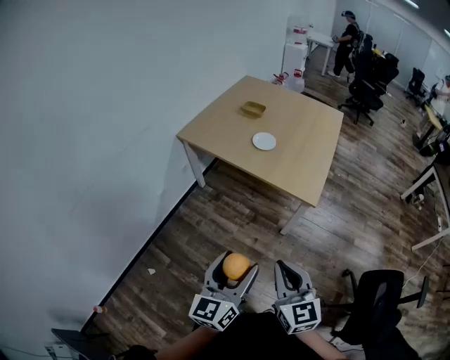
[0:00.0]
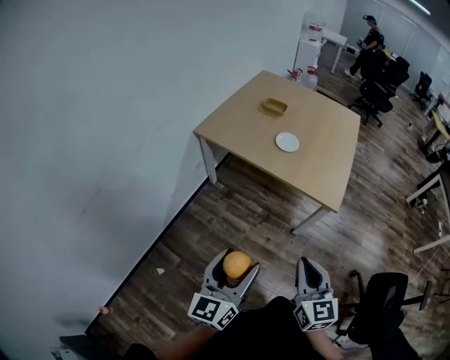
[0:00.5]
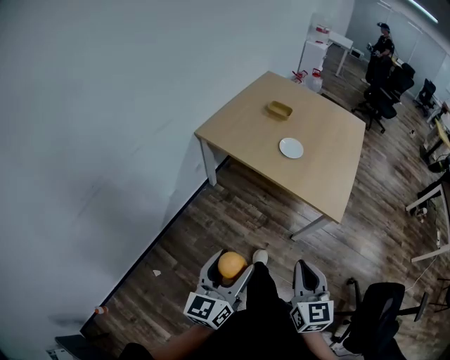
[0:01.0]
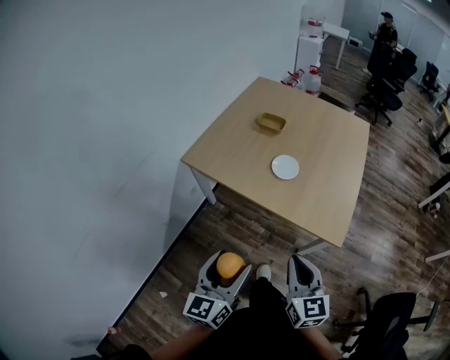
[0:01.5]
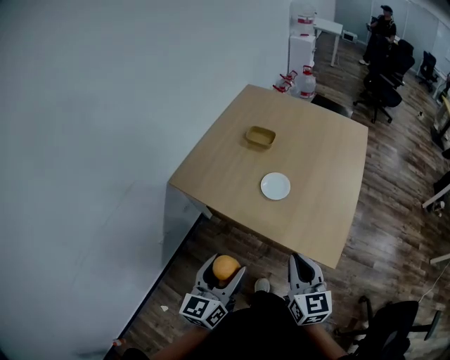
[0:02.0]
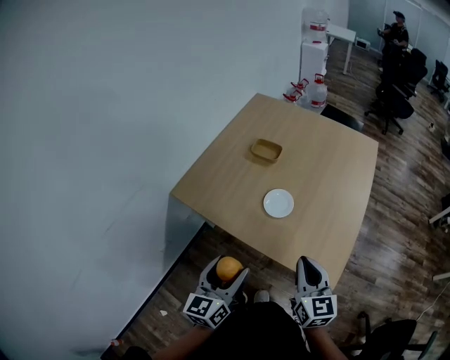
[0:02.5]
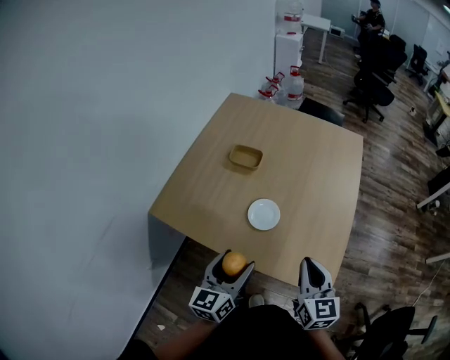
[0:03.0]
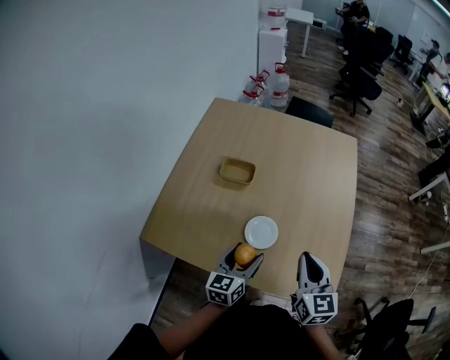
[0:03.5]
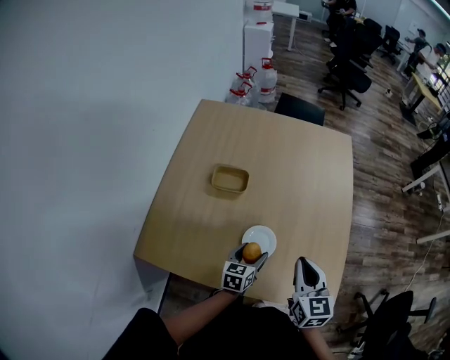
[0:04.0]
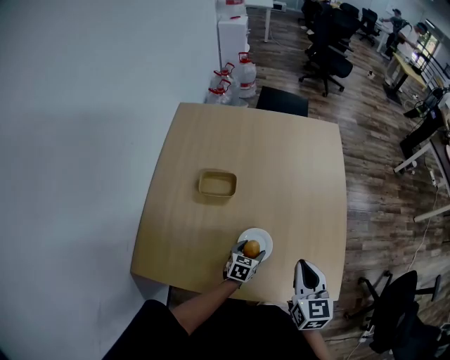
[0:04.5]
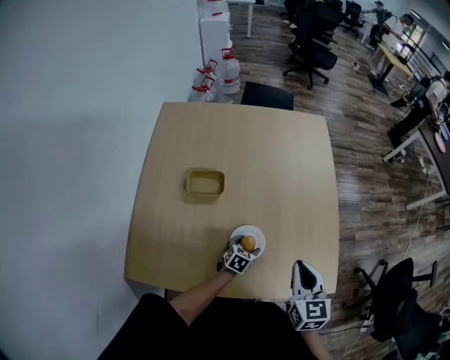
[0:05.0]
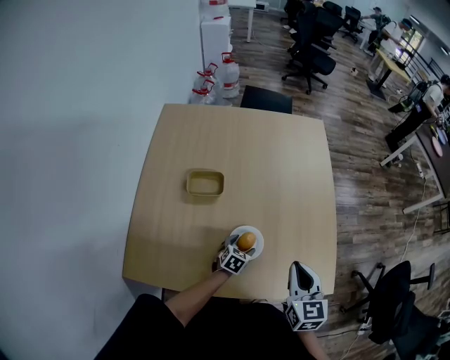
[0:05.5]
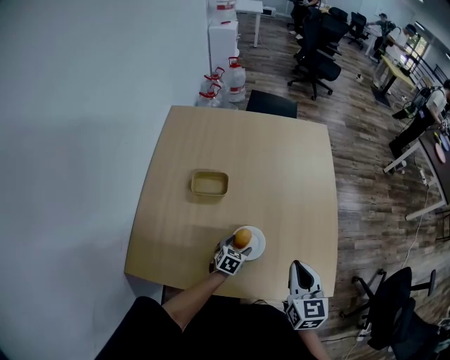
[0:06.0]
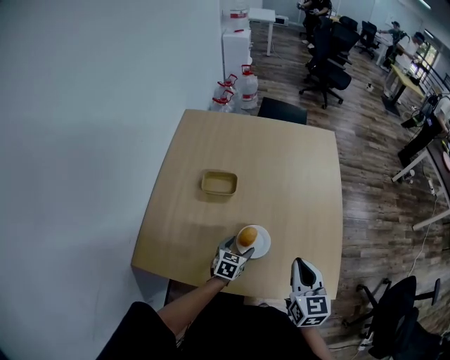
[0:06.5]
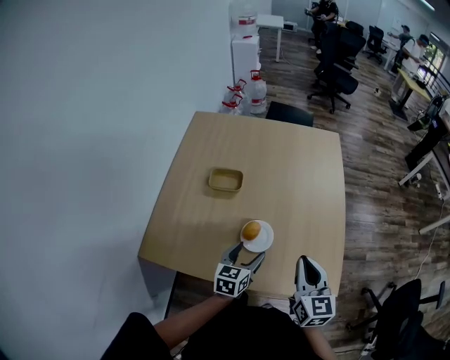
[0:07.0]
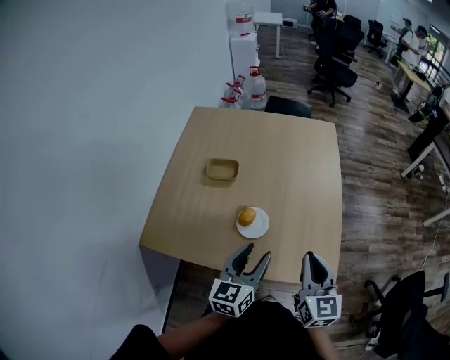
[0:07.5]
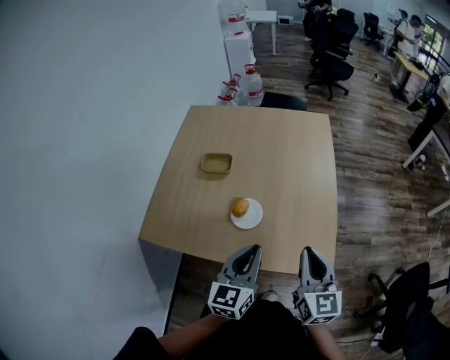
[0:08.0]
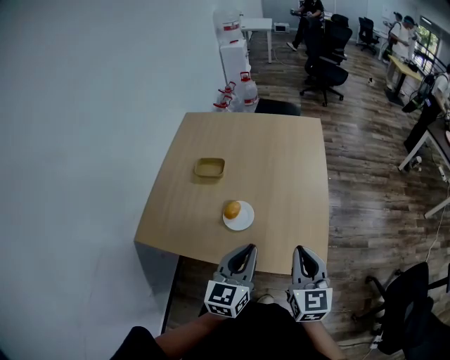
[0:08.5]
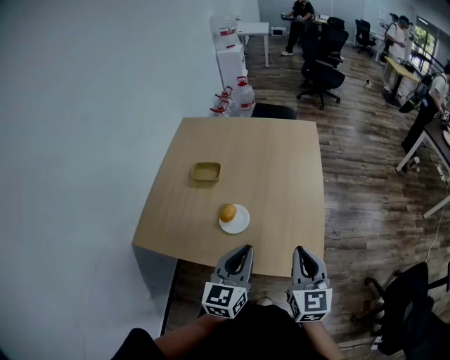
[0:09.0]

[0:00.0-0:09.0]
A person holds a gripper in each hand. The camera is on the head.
0:00.0 to 0:02.0: Both grippers travel together forward, roughly 35 cm.
0:02.0 to 0:04.5: The right gripper ends up approximately 25 cm from where it was, and changes its angle by roughly 30 degrees, while the left gripper changes place by roughly 50 cm, and tips its fingers downward by approximately 30 degrees.
0:04.5 to 0:07.0: The left gripper shifts about 15 cm upward, while the right gripper changes place by about 5 cm.
0:07.0 to 0:09.0: The right gripper moves to the right and backward, some 15 cm; the left gripper travels upward, to the right and backward by roughly 25 cm, rotates roughly 20 degrees, and closes.

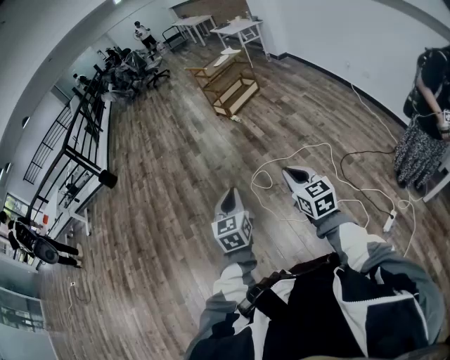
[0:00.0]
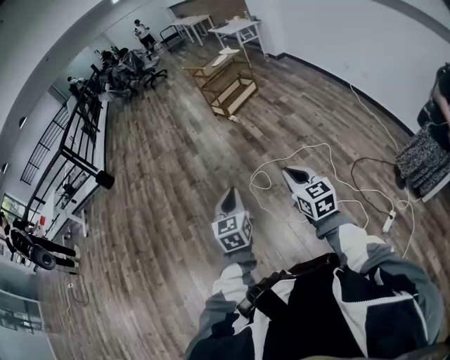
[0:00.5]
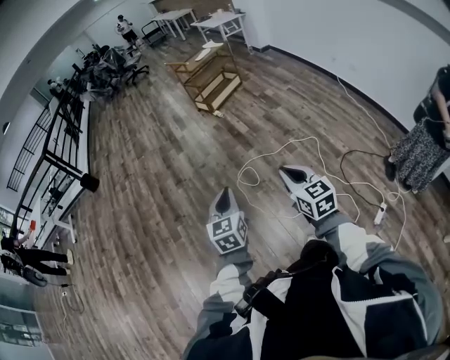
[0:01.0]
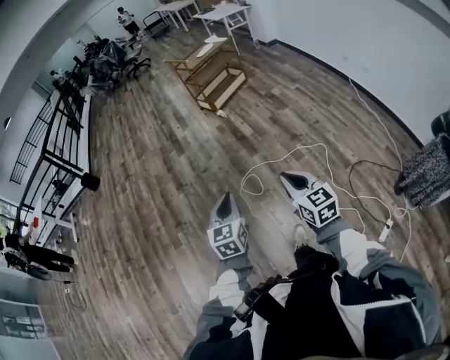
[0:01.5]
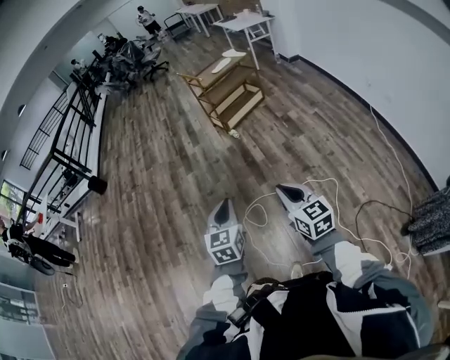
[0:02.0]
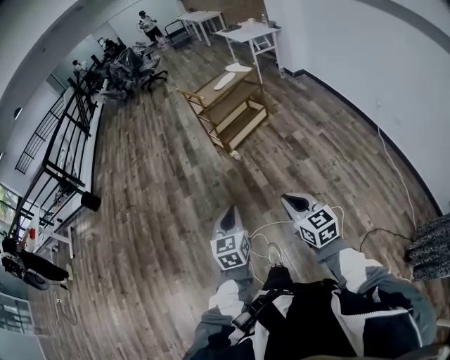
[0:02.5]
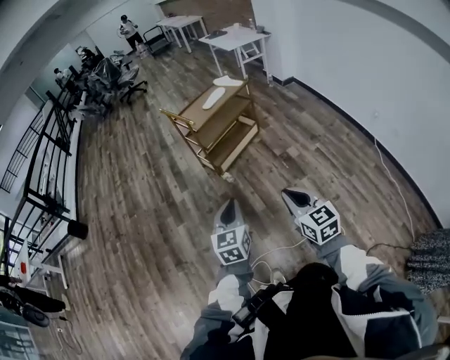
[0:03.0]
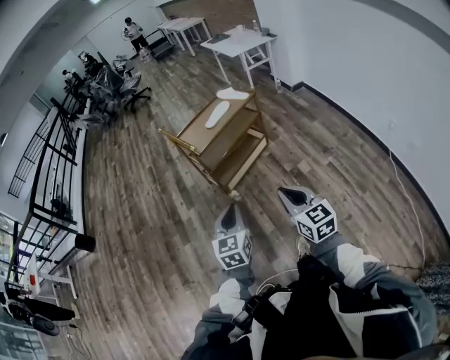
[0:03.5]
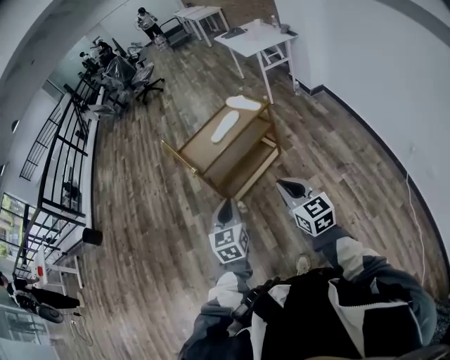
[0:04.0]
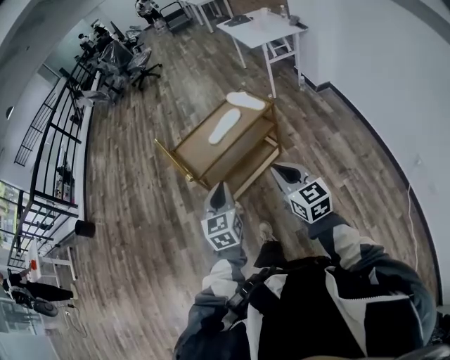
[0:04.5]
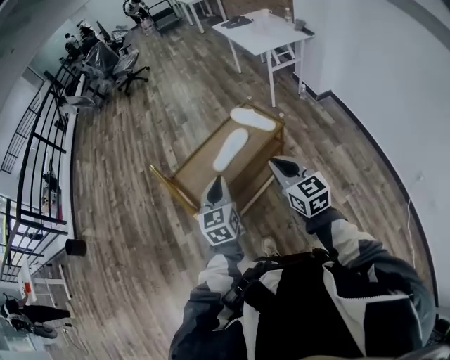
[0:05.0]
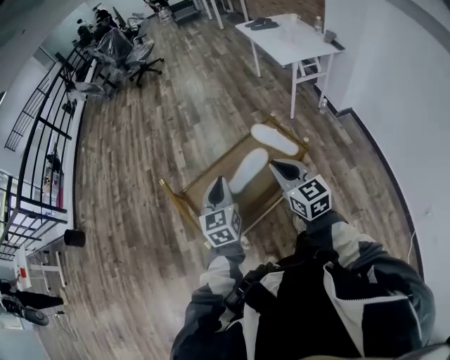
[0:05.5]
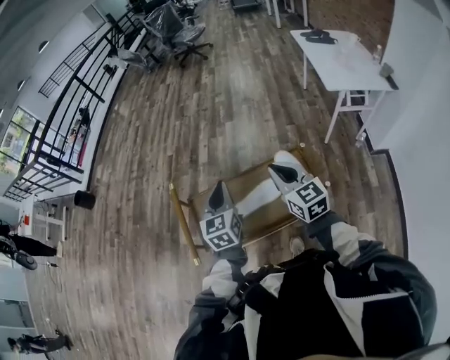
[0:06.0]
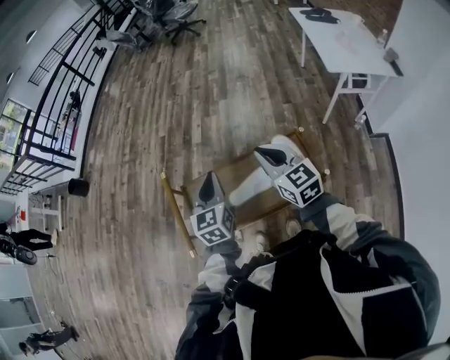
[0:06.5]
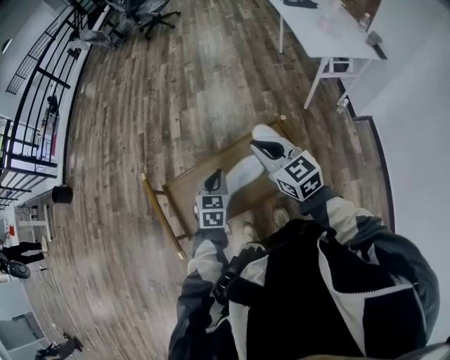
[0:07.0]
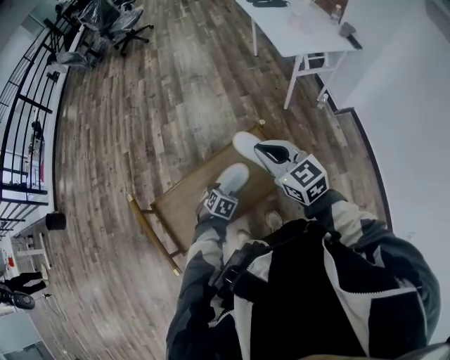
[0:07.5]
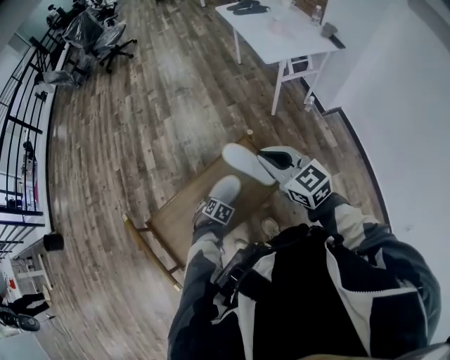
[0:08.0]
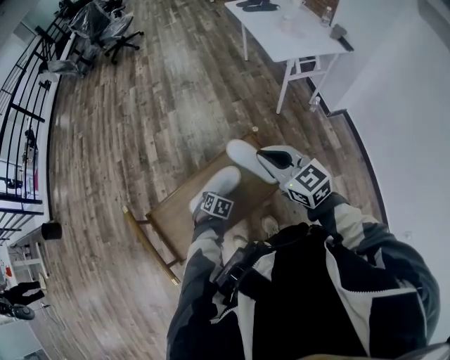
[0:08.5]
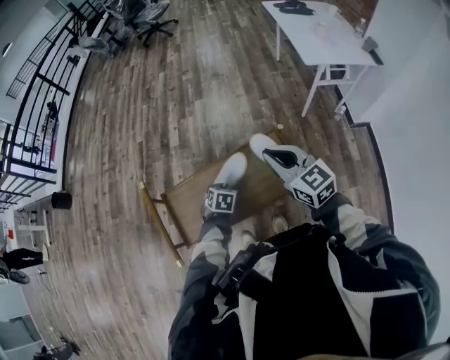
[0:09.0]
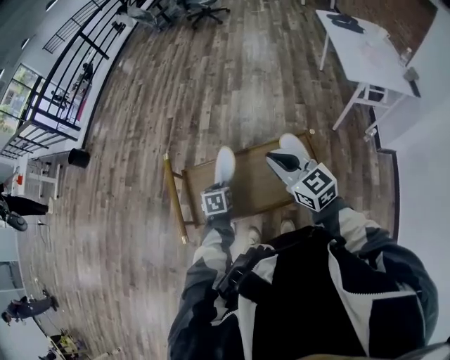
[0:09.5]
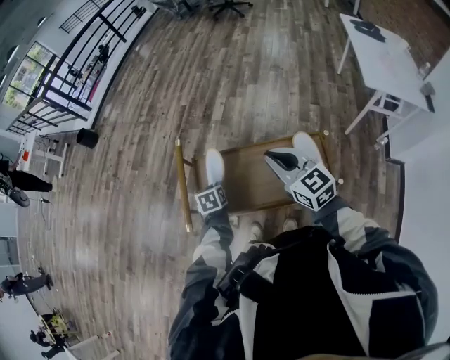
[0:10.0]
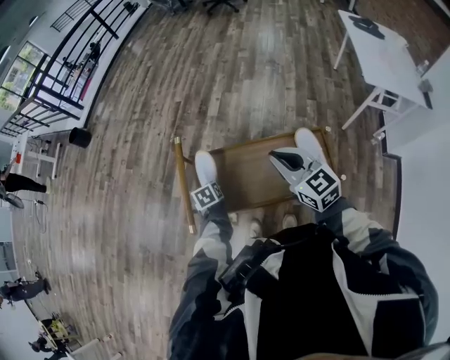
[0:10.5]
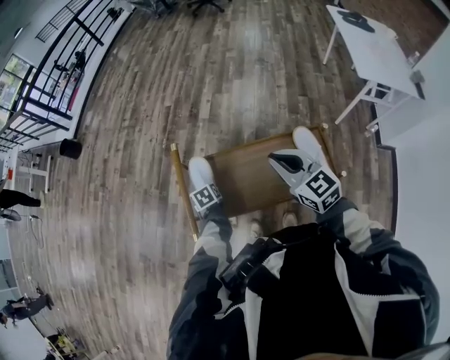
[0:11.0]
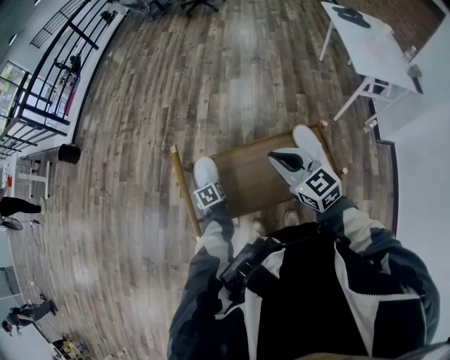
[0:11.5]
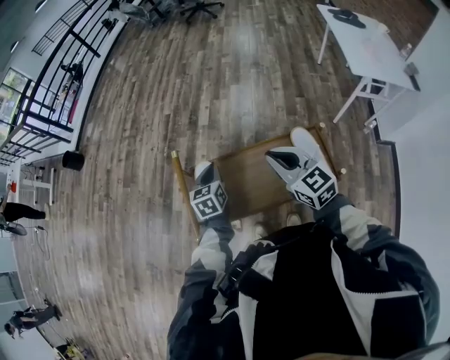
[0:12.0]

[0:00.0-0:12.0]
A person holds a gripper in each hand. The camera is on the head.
0:00.0 to 0:02.0: The right gripper goes some 35 cm forward; the left gripper goes roughly 35 cm forward and to the right.
0:02.0 to 0:04.0: The two grippers travel together, forward, approximately 80 cm.
0:04.0 to 0:06.0: Both grippers are carried forward, approximately 60 cm. The left gripper swivels about 30 degrees. The right gripper rotates roughly 20 degrees.
0:06.0 to 0:08.0: The right gripper moves about 15 cm. Meanwhile the left gripper shifts some 35 cm downward, tilts its fingers about 60 degrees downward, and opens its fingers.
0:08.0 to 0:10.0: The left gripper shifts by roughly 25 cm, rolls counterclockwise, seen from behind, by about 70 degrees, and closes up, while the right gripper shifts by some 20 cm, and rotates roughly 30 degrees.
0:10.0 to 0:12.0: The left gripper is displaced upward and forward by approximately 10 cm, turns by about 30 degrees, and opens, then closes once more.

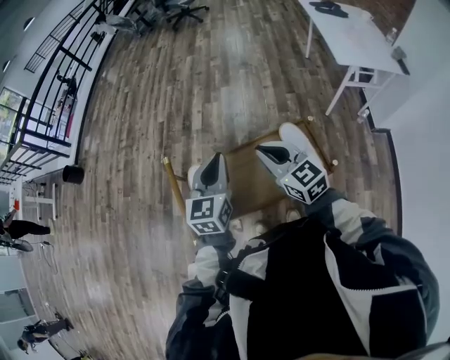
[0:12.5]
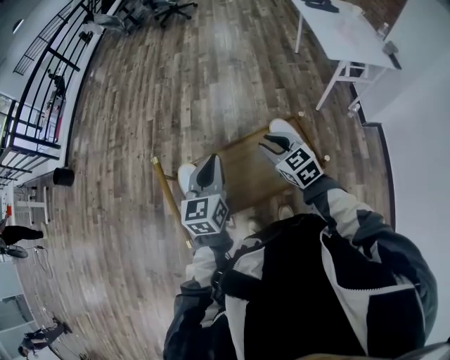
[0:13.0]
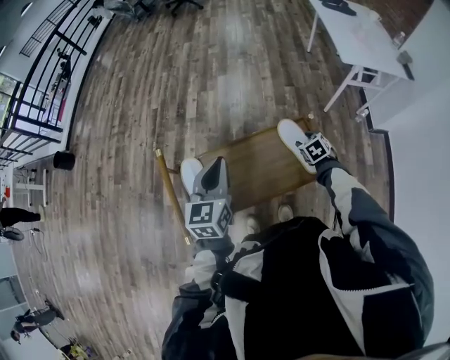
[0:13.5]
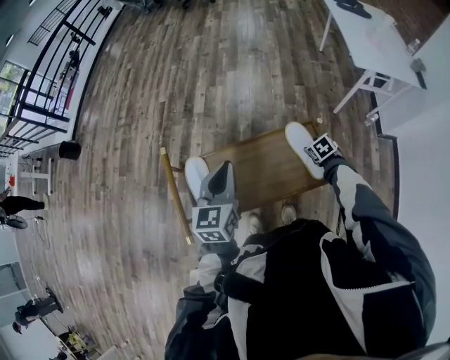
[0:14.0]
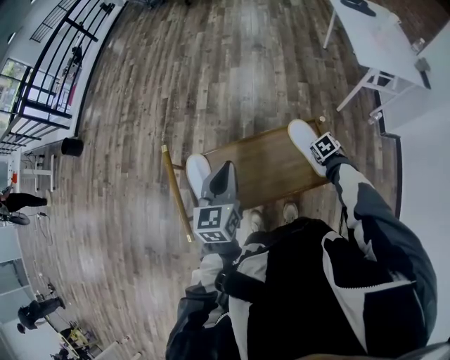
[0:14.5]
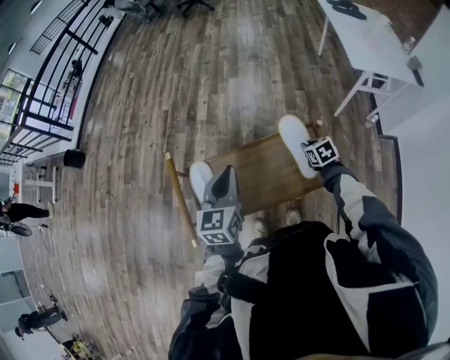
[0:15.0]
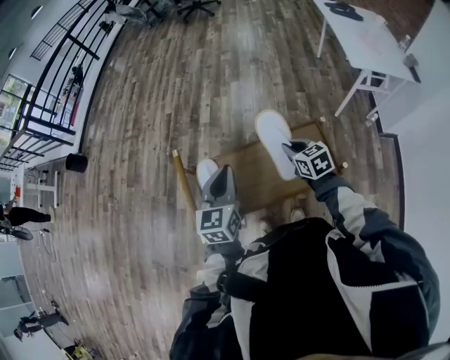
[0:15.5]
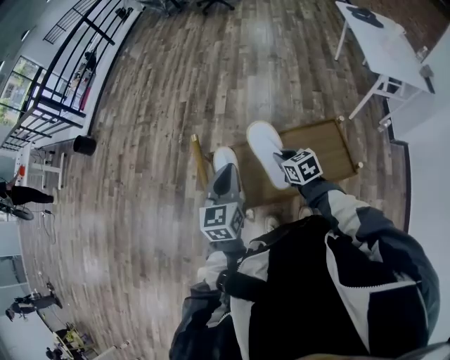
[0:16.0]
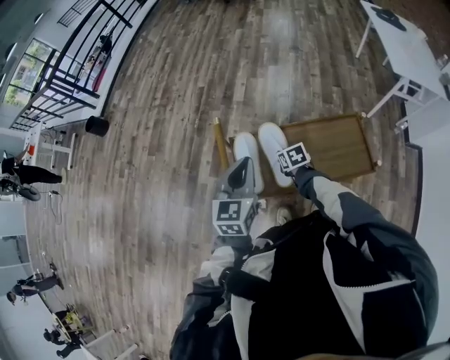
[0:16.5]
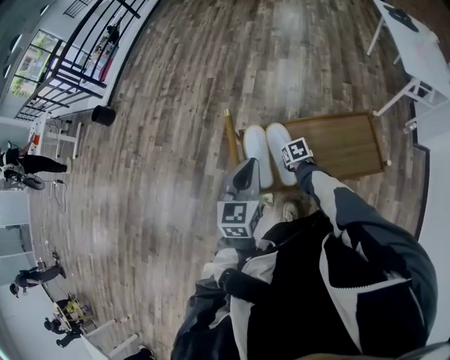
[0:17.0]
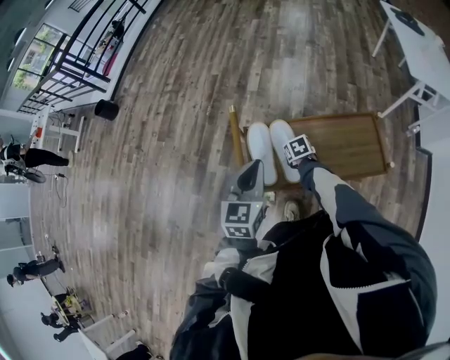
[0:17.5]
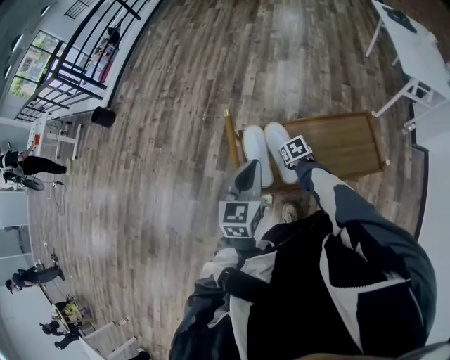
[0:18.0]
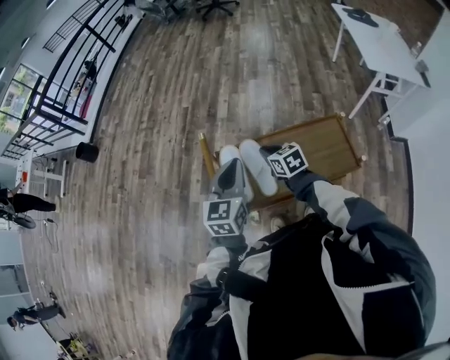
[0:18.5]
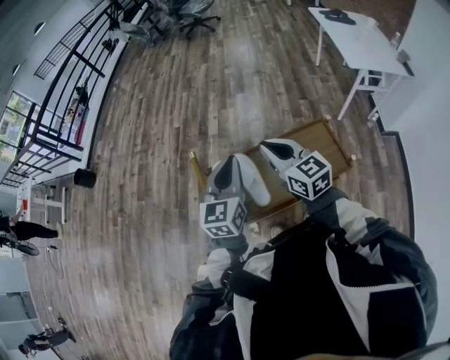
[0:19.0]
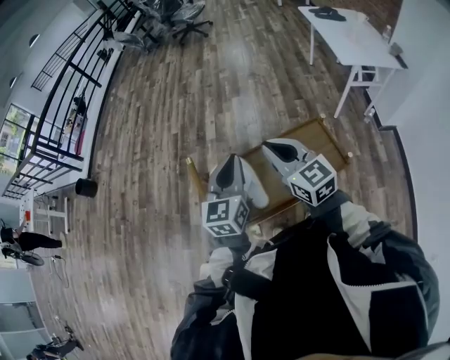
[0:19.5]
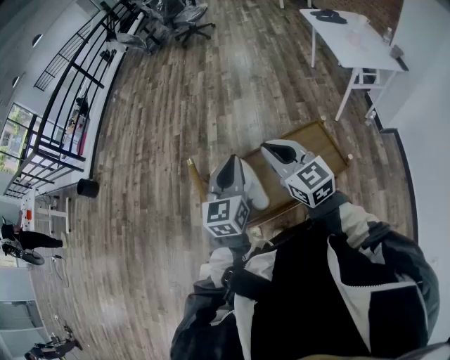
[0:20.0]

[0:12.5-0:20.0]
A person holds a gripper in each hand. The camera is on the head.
0:12.5 to 0:14.5: The right gripper is displaced downward and to the right by roughly 40 cm, tips its fingers downward by some 60 degrees, and opens, then closes once more.
0:14.5 to 0:16.5: The left gripper moves to the left, roughly 15 cm. The right gripper goes roughly 35 cm to the left, and changes its angle by roughly 20 degrees.
0:16.5 to 0:18.0: The right gripper opens.
0:18.0 to 0:20.0: The left gripper goes roughly 15 cm to the right and upward. The right gripper moves upward, about 40 cm, points its fingers about 50 degrees further upward, and closes.
